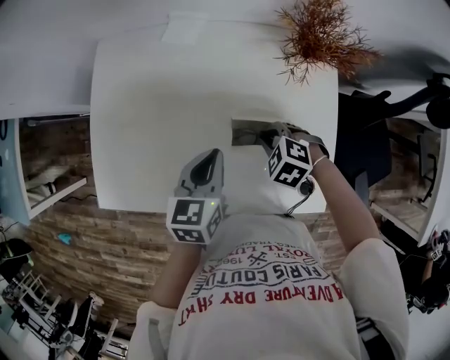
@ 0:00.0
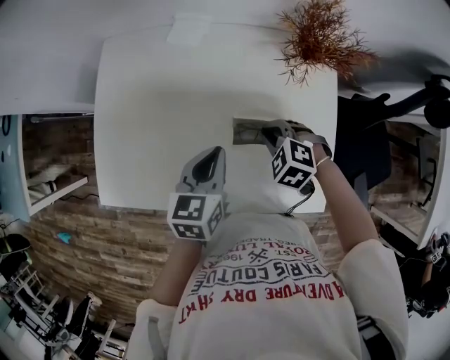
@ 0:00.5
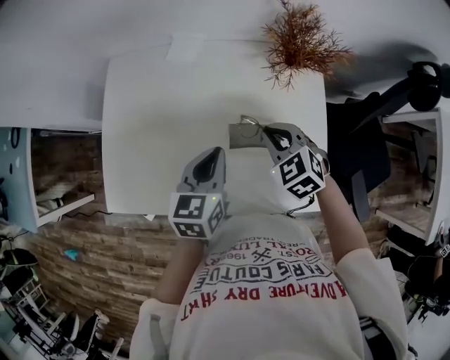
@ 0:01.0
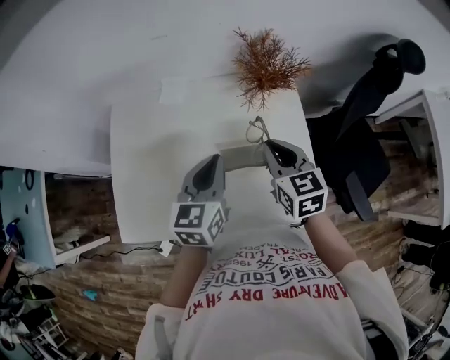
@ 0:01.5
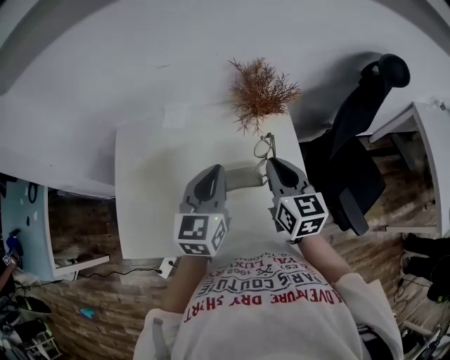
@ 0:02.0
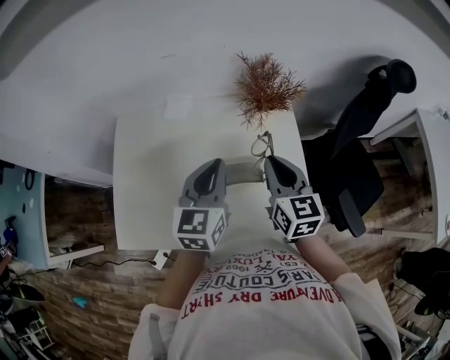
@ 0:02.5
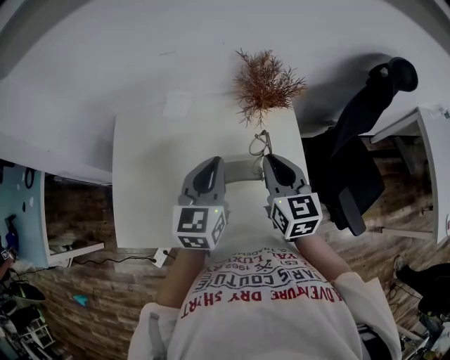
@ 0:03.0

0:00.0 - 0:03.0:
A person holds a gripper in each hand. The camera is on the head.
0:00.0 - 0:01.5: The left gripper shifts about 10 cm upward, while the right gripper moves upward, some 20 cm, and tilts its fingers about 40 degrees upward.
0:01.5 - 0:03.0: The grippers move only a little.

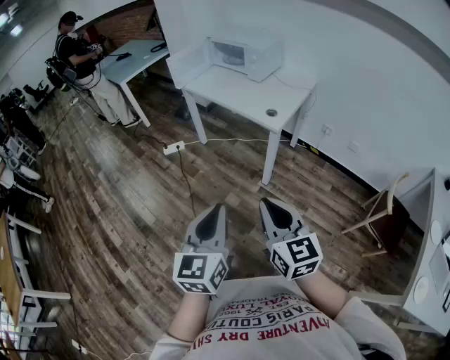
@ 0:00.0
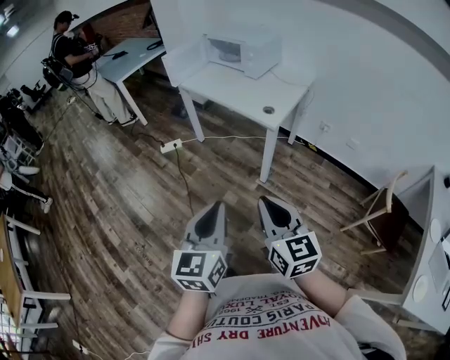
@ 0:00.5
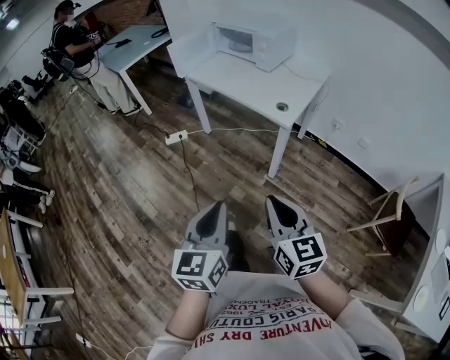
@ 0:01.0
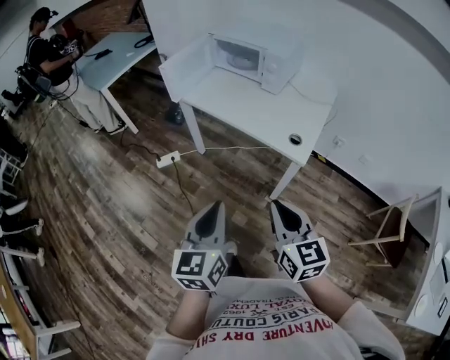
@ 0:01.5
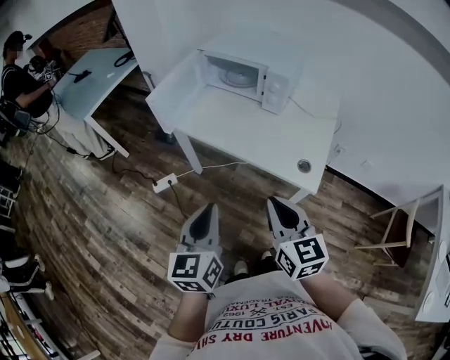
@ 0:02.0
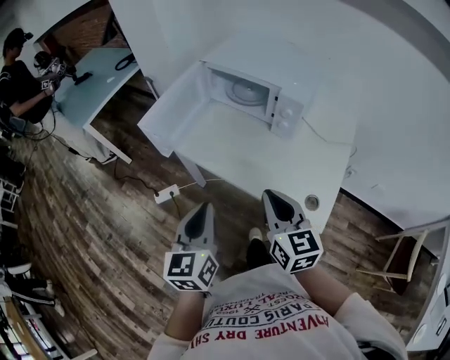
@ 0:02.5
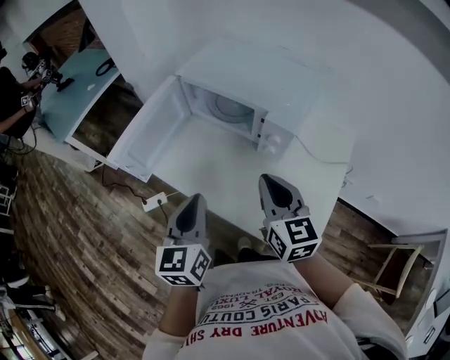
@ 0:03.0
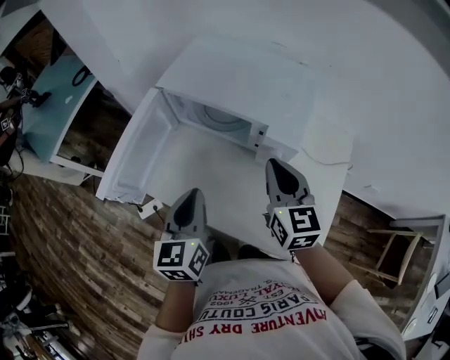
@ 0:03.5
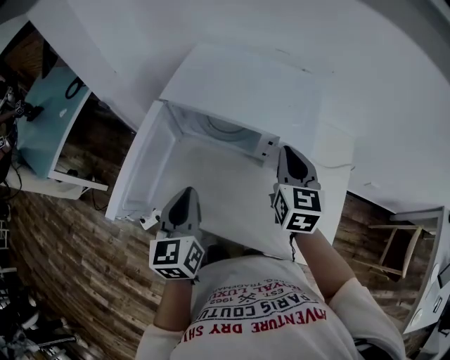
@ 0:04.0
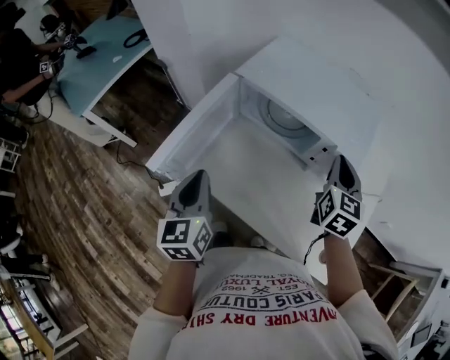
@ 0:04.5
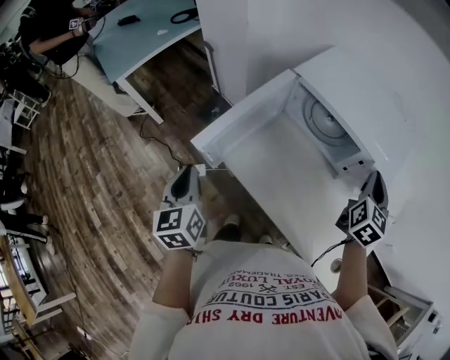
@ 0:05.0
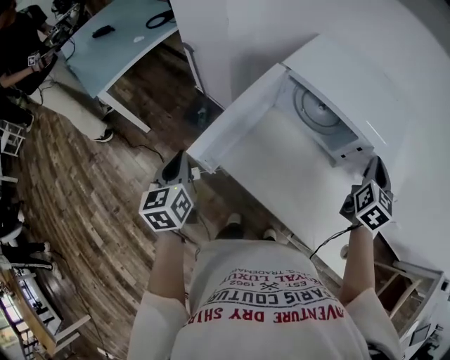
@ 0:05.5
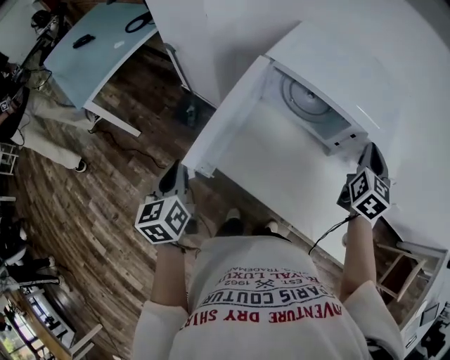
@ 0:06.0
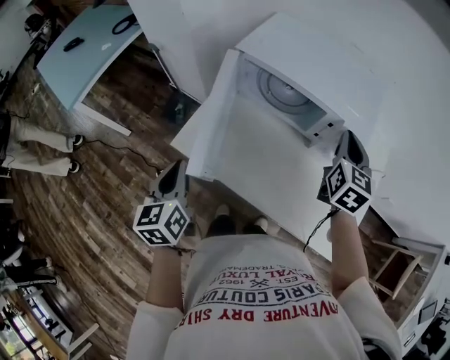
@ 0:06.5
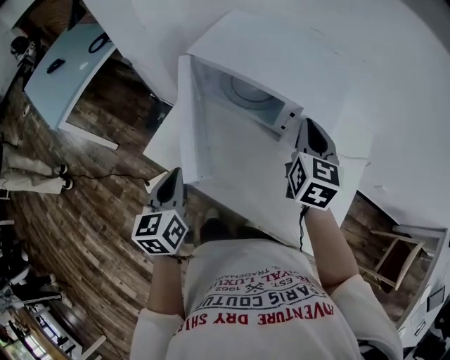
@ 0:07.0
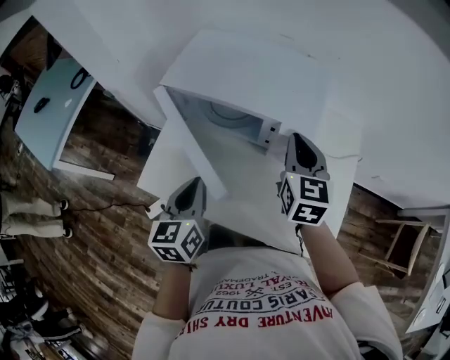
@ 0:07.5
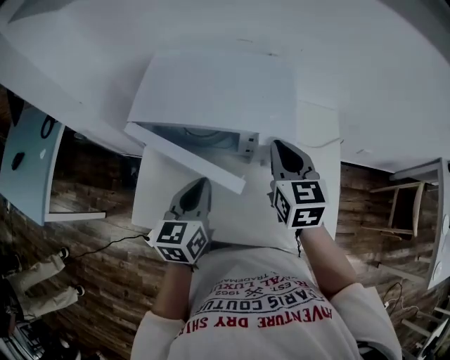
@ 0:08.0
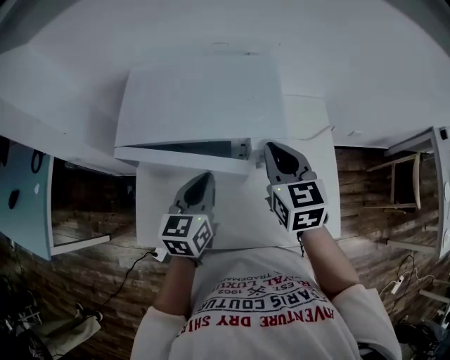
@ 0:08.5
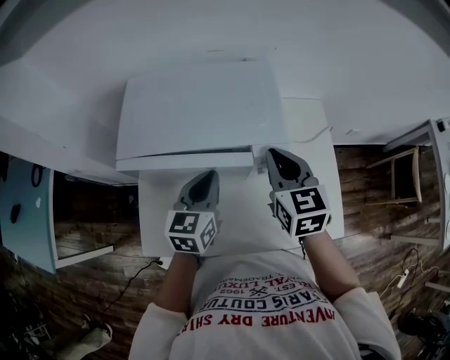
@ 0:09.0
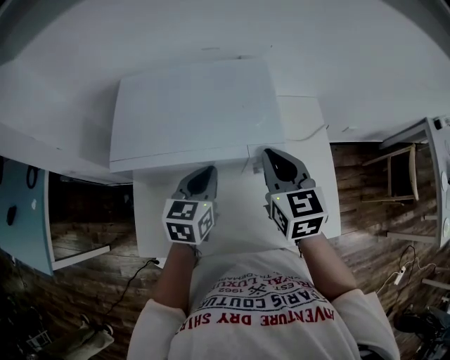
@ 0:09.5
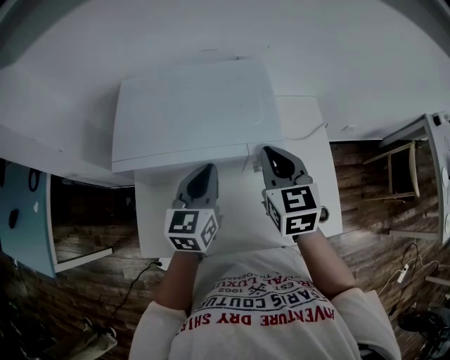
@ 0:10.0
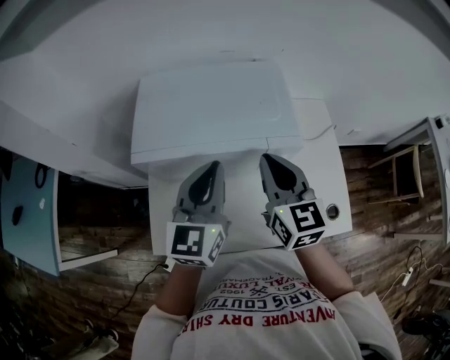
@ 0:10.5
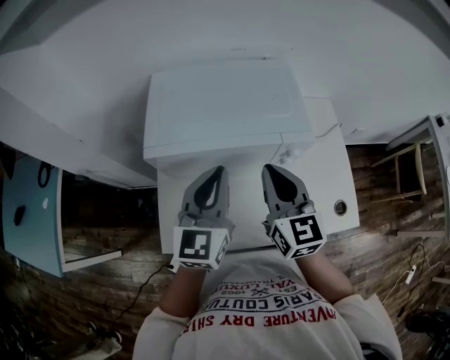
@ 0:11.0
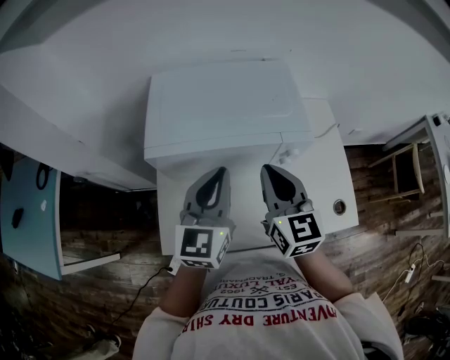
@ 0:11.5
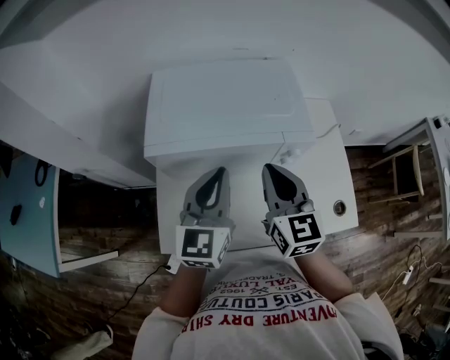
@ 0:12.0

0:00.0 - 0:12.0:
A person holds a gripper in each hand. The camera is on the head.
0:00.0 - 0:02.0: Both grippers are carried forward, approximately 50 cm.
0:02.0 - 0:04.0: The two grippers travel together, forward, approximately 50 cm. The right gripper rotates about 30 degrees.
0:04.0 - 0:06.0: The left gripper heads to the left, covering about 25 cm, and swivels about 20 degrees.
0:06.0 - 0:08.0: The left gripper travels to the right and forward by approximately 35 cm, and rotates approximately 40 degrees.
0:08.0 - 0:10.0: The left gripper shifts about 10 cm forward.
0:10.0 - 0:12.0: The left gripper moves to the left, upward and backward, roughly 10 cm. The right gripper goes some 10 cm to the left and backward.

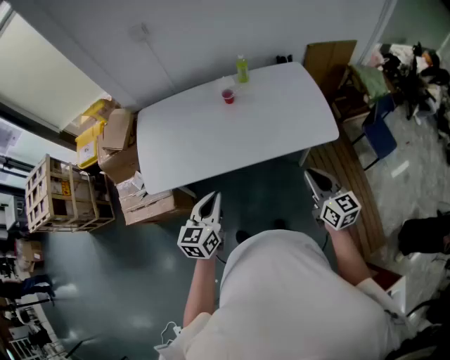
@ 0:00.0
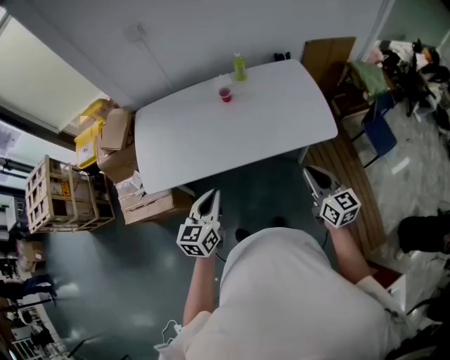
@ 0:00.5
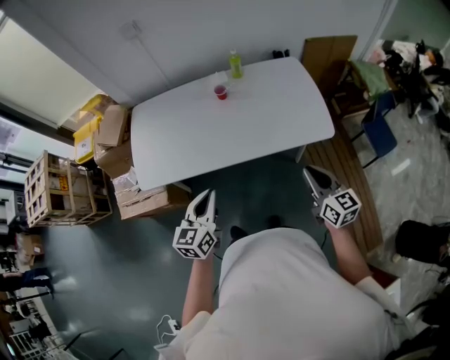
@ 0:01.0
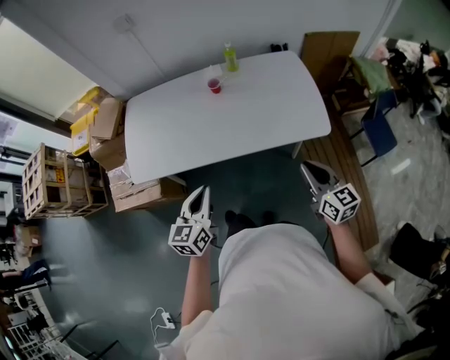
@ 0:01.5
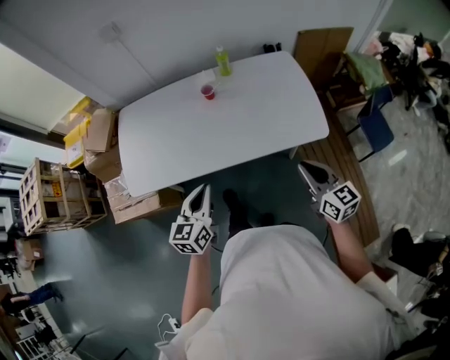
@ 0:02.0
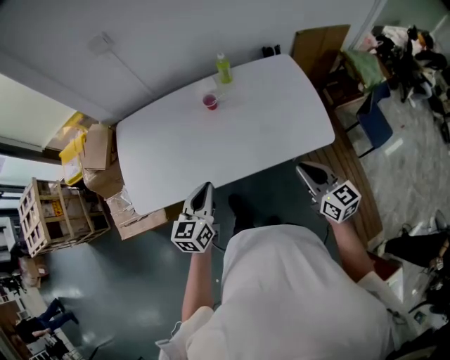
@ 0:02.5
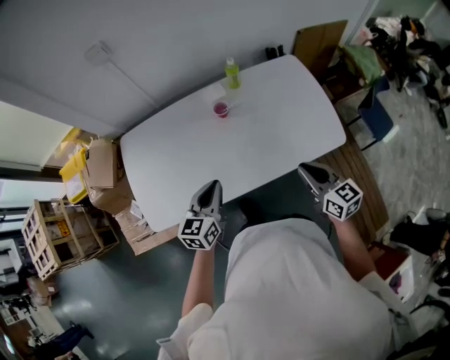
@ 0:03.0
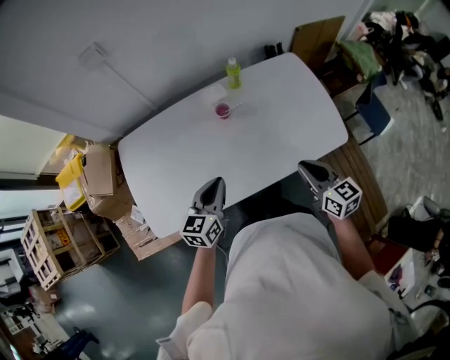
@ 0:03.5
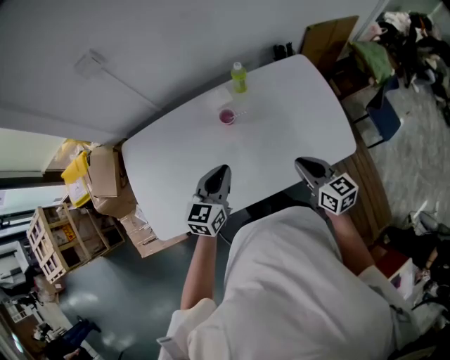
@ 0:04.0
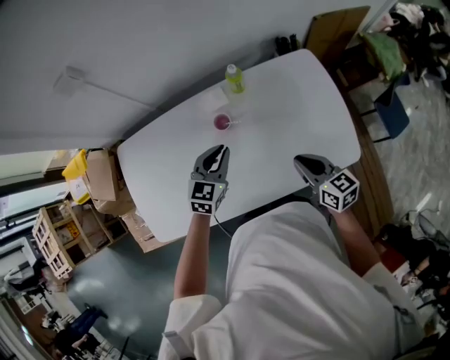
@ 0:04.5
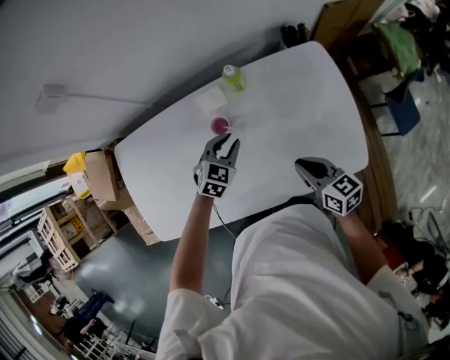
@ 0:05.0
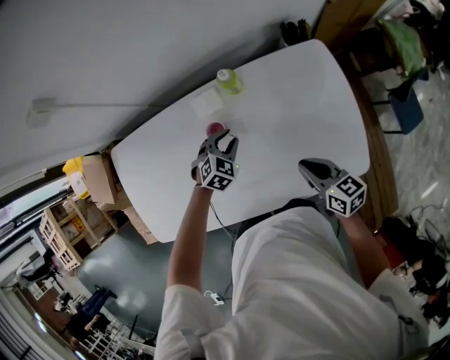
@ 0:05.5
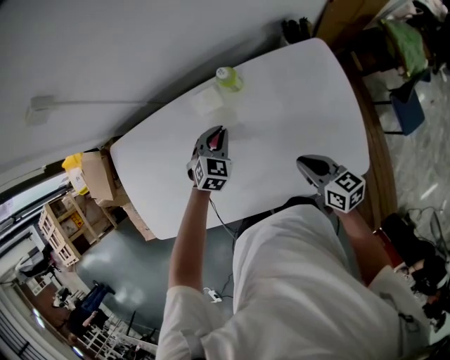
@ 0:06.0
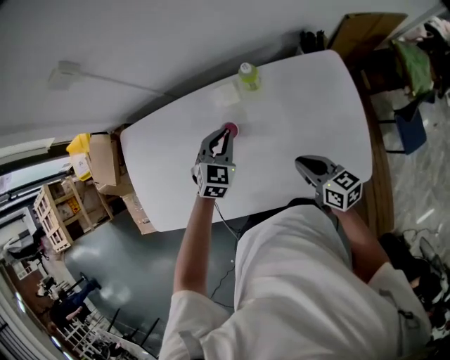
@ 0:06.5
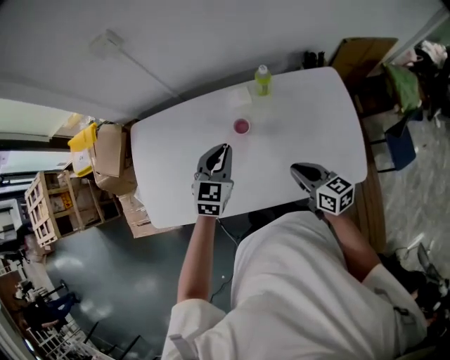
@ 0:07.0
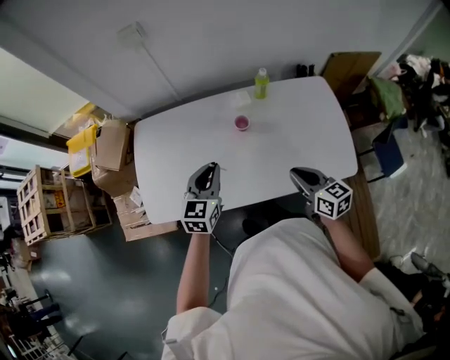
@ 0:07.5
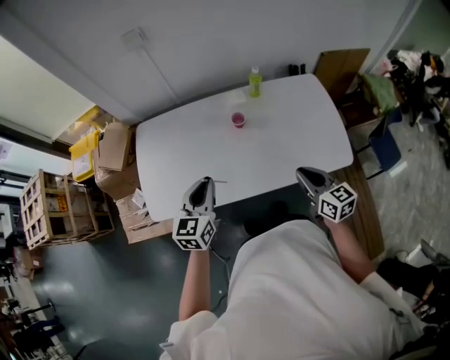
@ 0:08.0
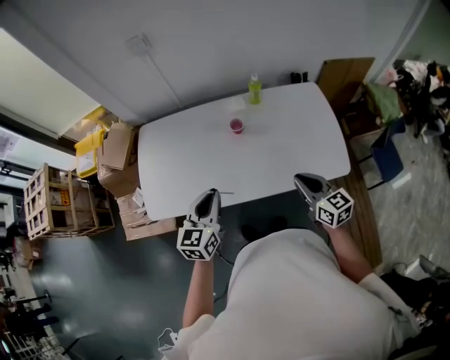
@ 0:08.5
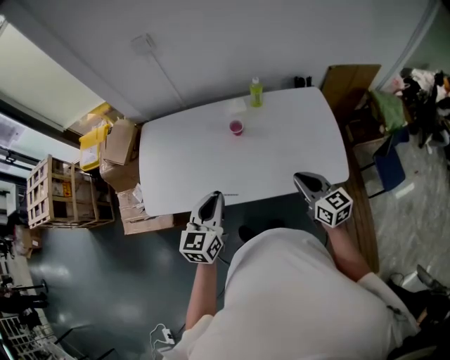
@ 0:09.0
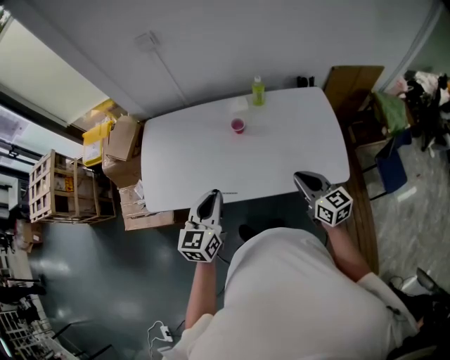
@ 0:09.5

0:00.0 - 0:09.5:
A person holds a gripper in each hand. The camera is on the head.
0:00.0 - 0:02.0: Both grippers move to the right and forward, some 10 cm.
0:02.0 - 0:04.0: The right gripper is displaced forward and to the left by roughly 25 cm. The left gripper travels forward by some 25 cm.
0:04.0 - 0:05.5: The left gripper travels downward, forward and to the right by roughly 30 cm, tips its fingers downward by about 40 degrees, and opens up; the right gripper travels forward, downward and to the right by approximately 15 cm.
0:05.5 - 0:07.5: The right gripper shifts some 20 cm to the left, backward and upward. The left gripper travels upward, to the left and backward by some 35 cm, angles its fingers upward, by some 30 degrees, and closes.
0:07.5 - 0:09.5: The left gripper travels backward by some 15 cm, while the right gripper heads backward and to the right, covering approximately 10 cm.

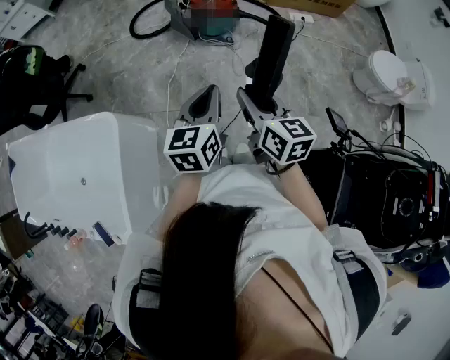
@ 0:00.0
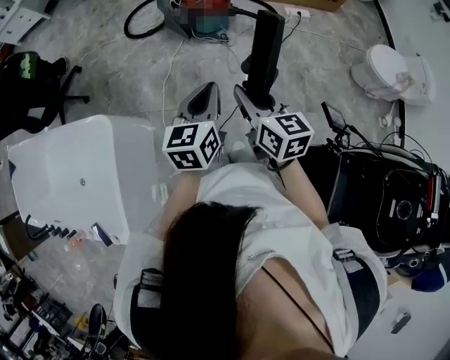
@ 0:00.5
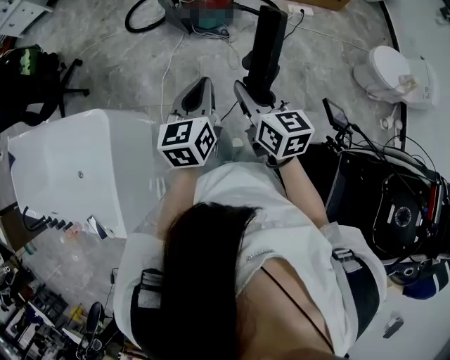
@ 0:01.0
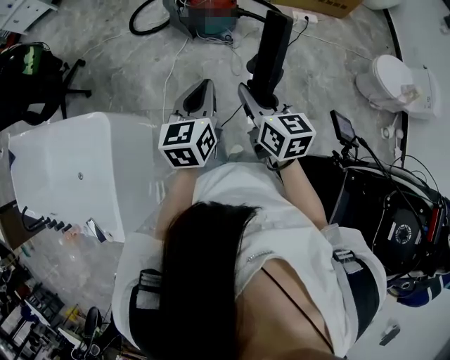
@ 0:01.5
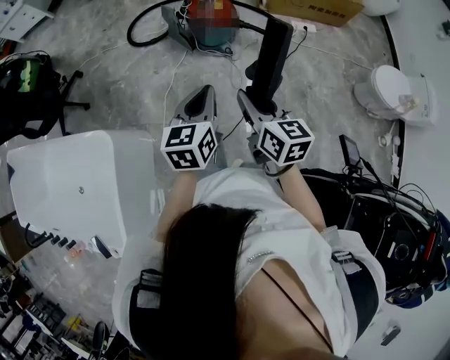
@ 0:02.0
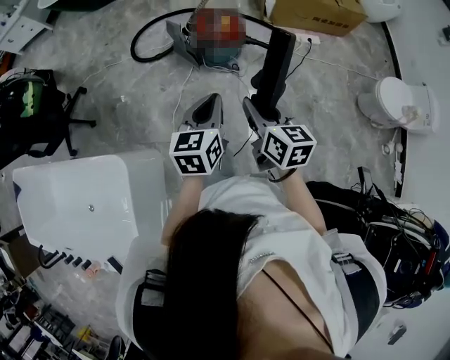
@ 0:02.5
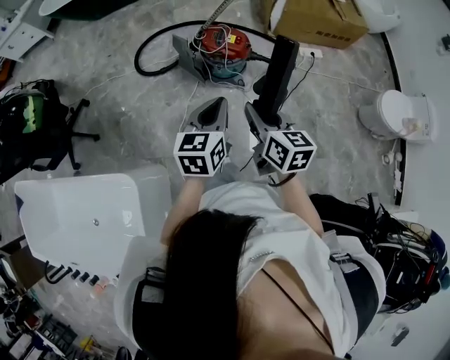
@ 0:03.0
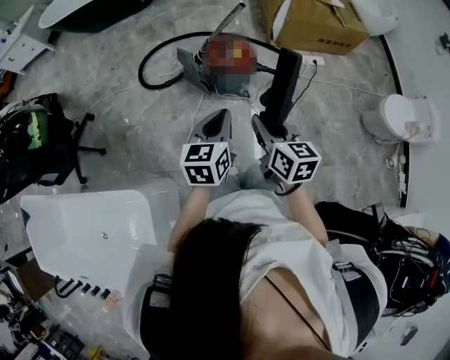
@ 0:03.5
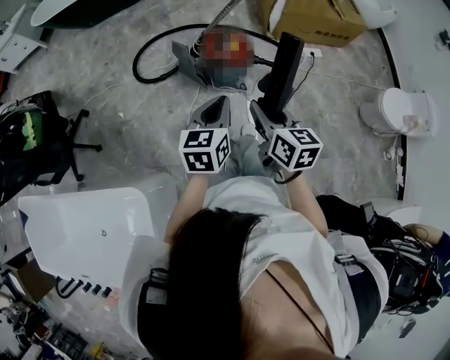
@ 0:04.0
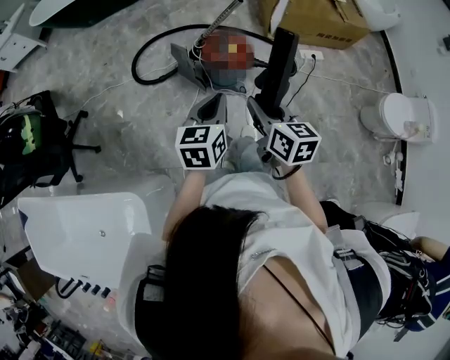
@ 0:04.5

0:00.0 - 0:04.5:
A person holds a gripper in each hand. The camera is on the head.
0:00.0 - 0:02.0: Both grippers move forward, approximately 10 cm.
0:02.0 - 0:04.5: Both grippers travel together forward, roughly 30 cm.
